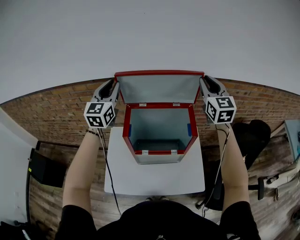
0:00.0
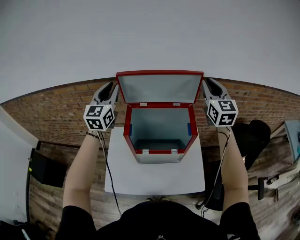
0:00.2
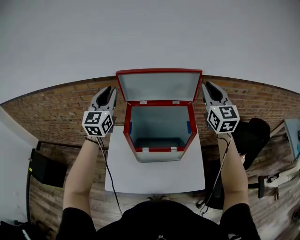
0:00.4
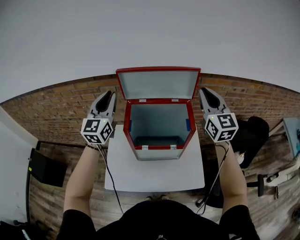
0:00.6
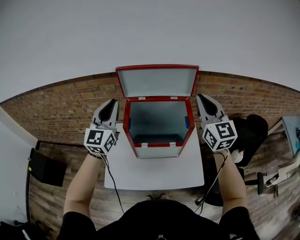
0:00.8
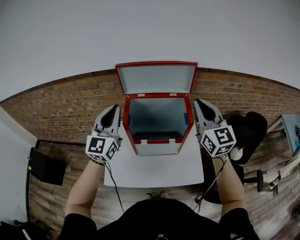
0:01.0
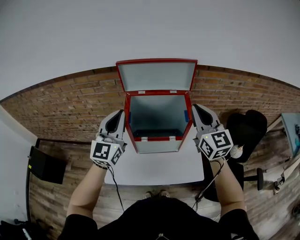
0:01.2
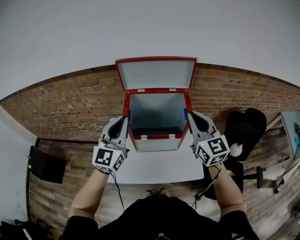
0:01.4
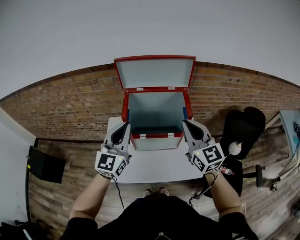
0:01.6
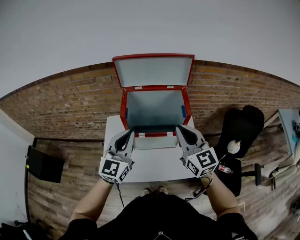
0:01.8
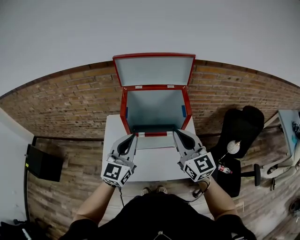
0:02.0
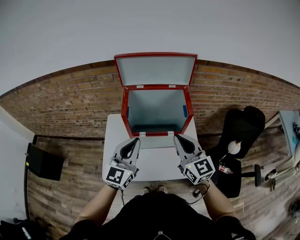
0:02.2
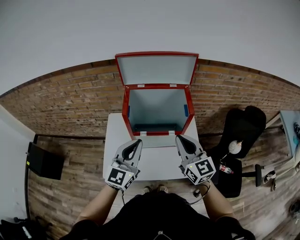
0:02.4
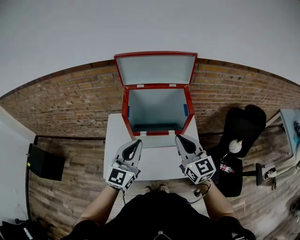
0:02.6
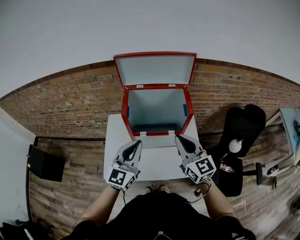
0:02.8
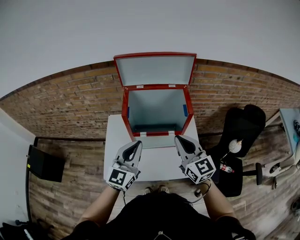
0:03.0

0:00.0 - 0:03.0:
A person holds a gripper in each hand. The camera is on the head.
0:00.0 - 0:01.6: The left gripper is displaced backward by about 25 cm; the right gripper travels backward and downward by approximately 25 cm.
0:01.6 - 0:03.0: The right gripper is displaced downward by about 5 cm. The left gripper travels downward and backward by some 10 cm.

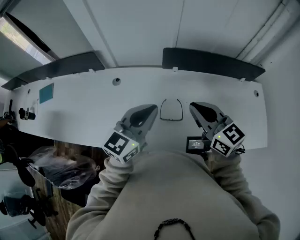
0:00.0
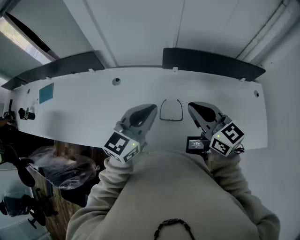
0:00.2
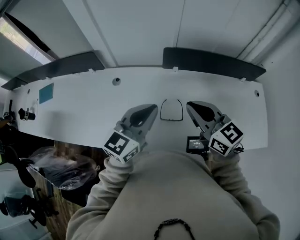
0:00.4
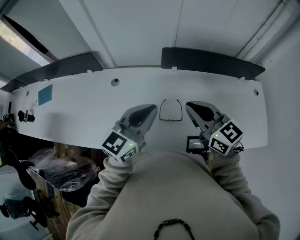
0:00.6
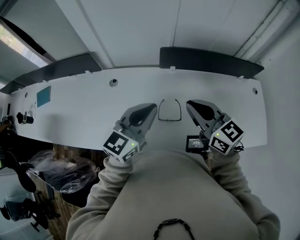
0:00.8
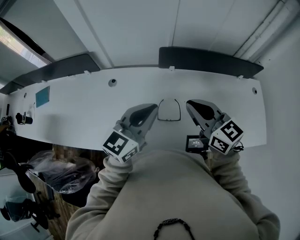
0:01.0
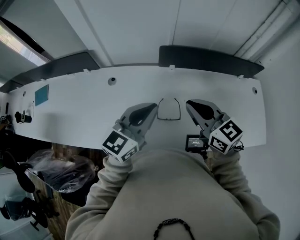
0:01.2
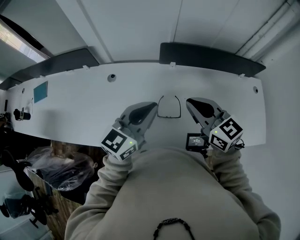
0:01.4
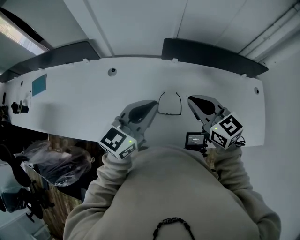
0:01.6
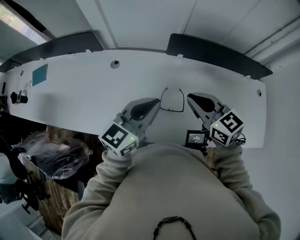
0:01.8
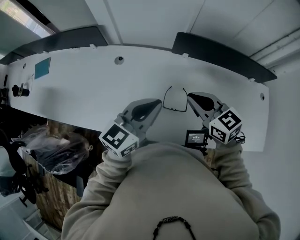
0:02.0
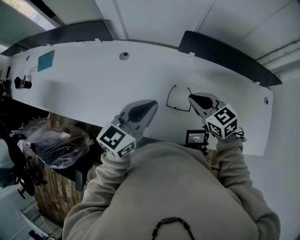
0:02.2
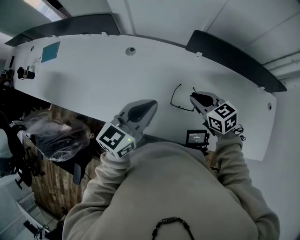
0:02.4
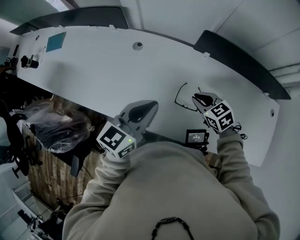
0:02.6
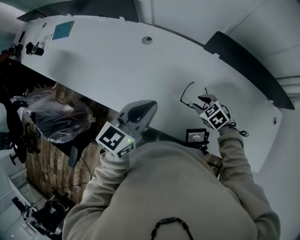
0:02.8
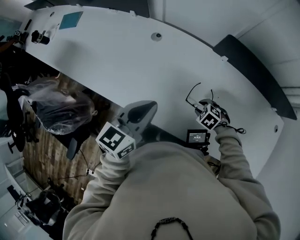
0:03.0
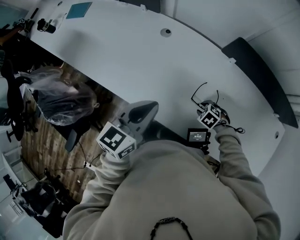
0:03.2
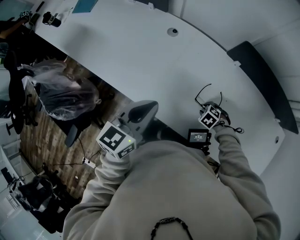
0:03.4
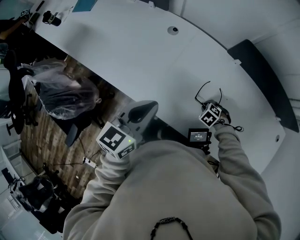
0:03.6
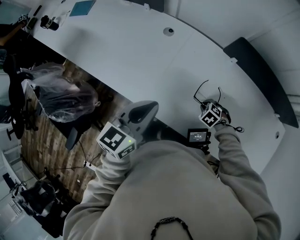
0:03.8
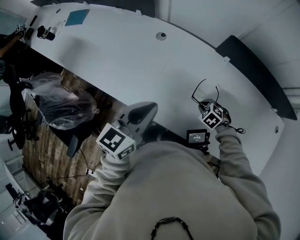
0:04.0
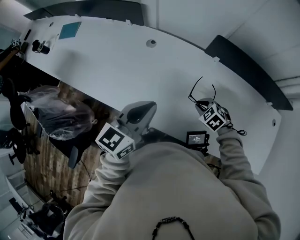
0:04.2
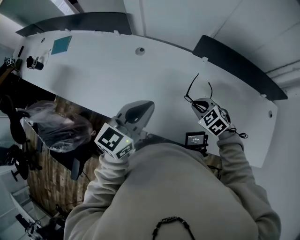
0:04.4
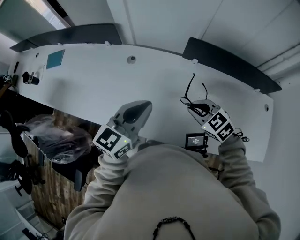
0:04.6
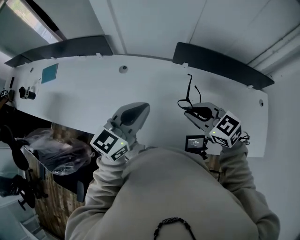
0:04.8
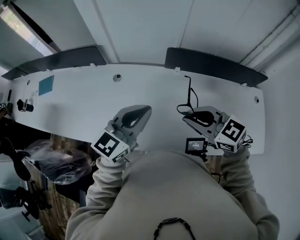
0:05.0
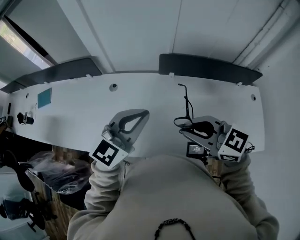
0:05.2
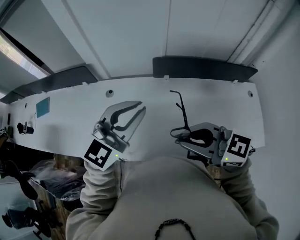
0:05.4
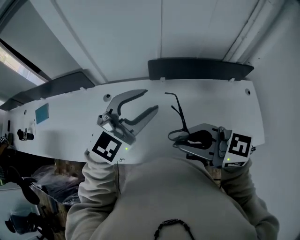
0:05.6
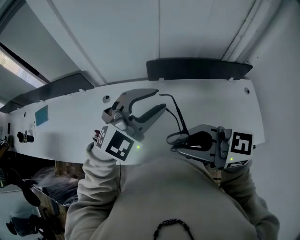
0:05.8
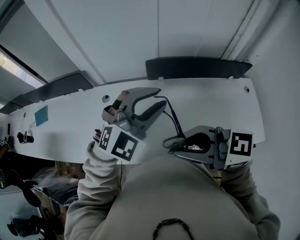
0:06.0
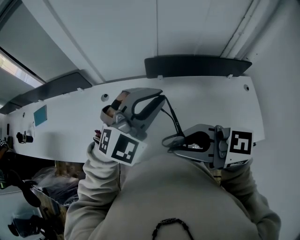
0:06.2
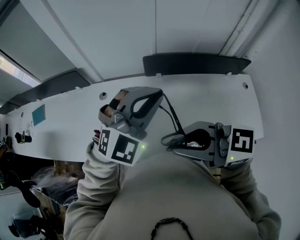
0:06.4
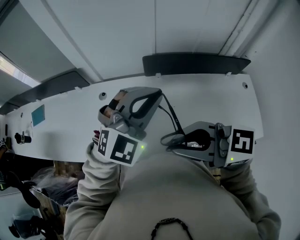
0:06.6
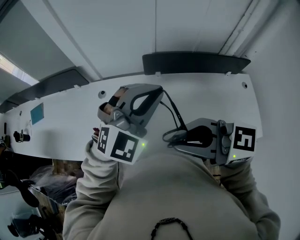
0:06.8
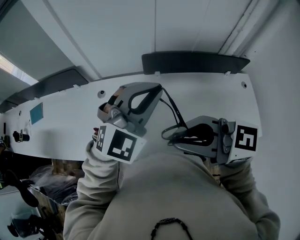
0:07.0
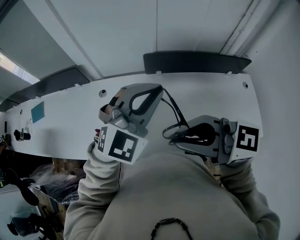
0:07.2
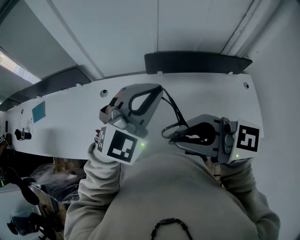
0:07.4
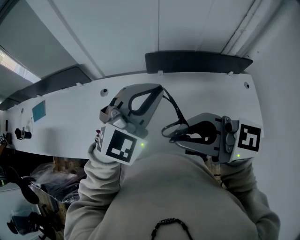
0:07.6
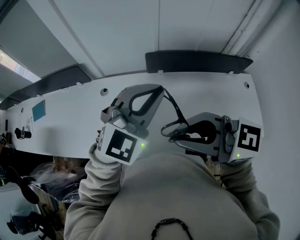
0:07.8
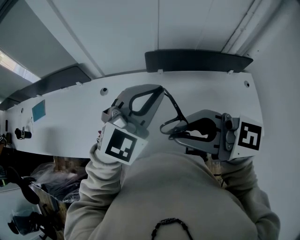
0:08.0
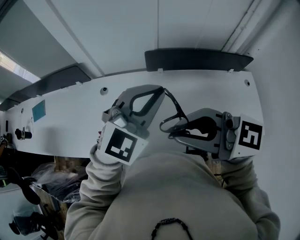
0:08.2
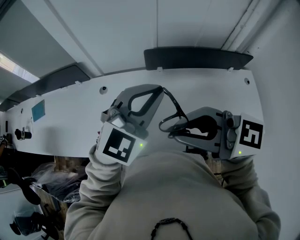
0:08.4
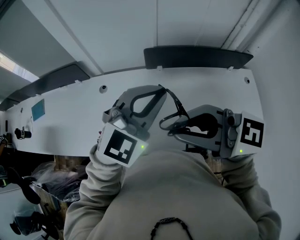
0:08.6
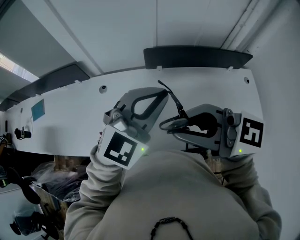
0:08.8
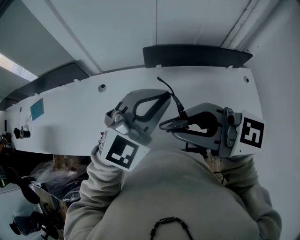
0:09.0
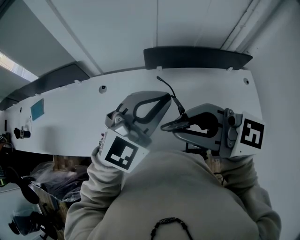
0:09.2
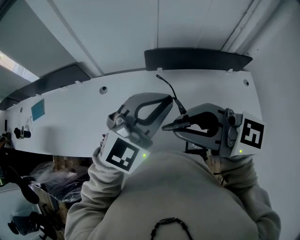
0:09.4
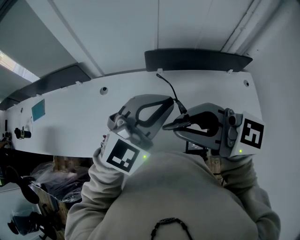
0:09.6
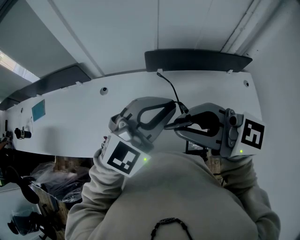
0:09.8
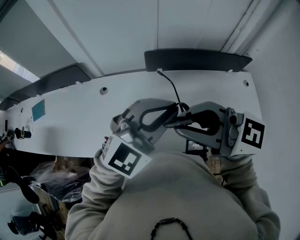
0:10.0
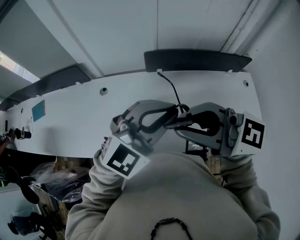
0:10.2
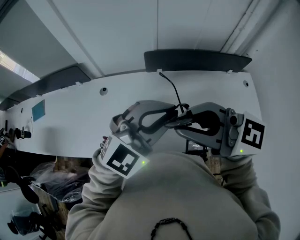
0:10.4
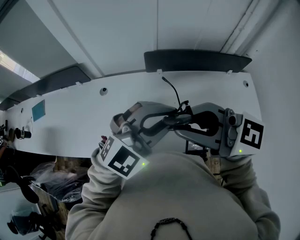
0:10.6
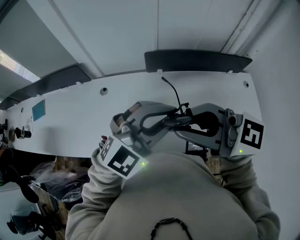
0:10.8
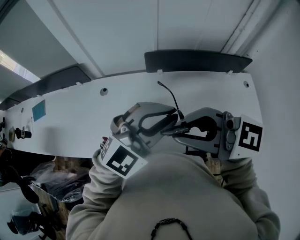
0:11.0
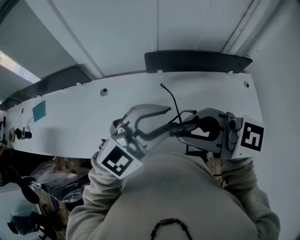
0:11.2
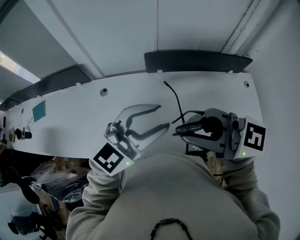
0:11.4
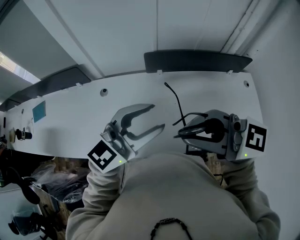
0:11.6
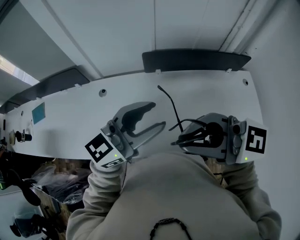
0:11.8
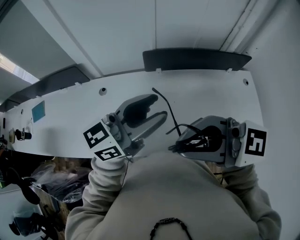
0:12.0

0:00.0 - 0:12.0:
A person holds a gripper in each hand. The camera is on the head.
0:00.0 - 0:01.6: The right gripper changes place by roughly 5 cm.
0:01.6 - 0:03.0: The left gripper moves approximately 15 cm, and swivels about 30 degrees; the right gripper is displaced downward by about 30 cm, tips its fingers downward by about 60 degrees, and opens up.
0:03.0 - 0:04.4: The right gripper travels upward by about 15 cm, and rotates approximately 20 degrees.
0:04.4 - 0:06.0: The right gripper shifts some 30 cm upward, and tips its fingers upward by some 50 degrees; the left gripper ends up some 25 cm from where it was, rolls clockwise, seen from behind, by approximately 60 degrees, and opens up.
0:06.0 - 0:07.6: The left gripper closes.
0:07.6 - 0:09.0: The grippers make only small movements.
0:09.0 - 0:10.4: The grippers move only a little.
0:10.4 - 0:12.0: The left gripper rotates around the line of its fingers by some 50 degrees, counterclockwise from behind, and opens its fingers.

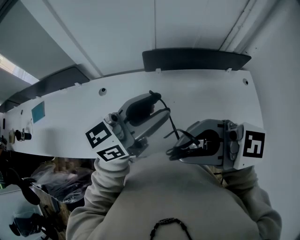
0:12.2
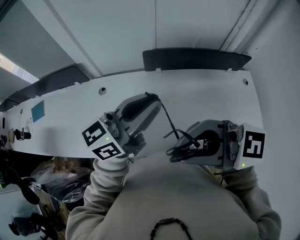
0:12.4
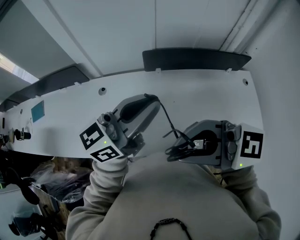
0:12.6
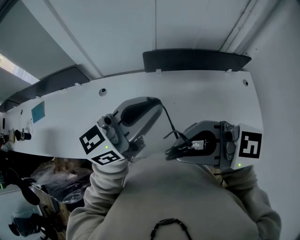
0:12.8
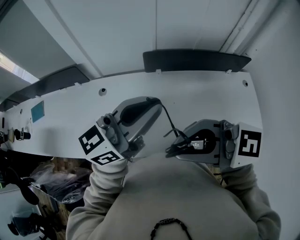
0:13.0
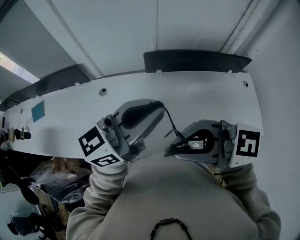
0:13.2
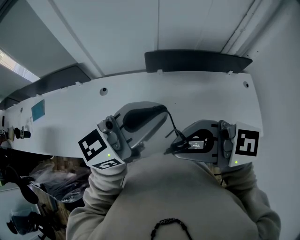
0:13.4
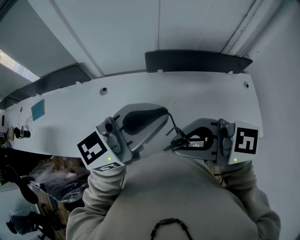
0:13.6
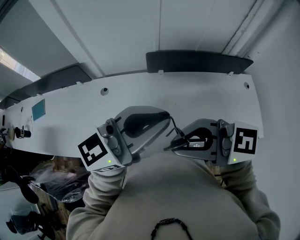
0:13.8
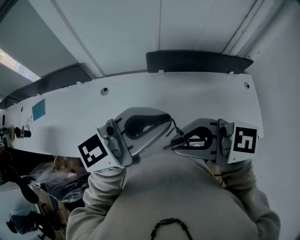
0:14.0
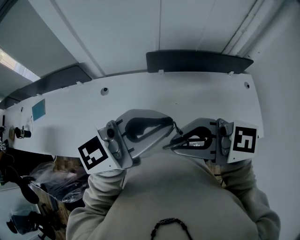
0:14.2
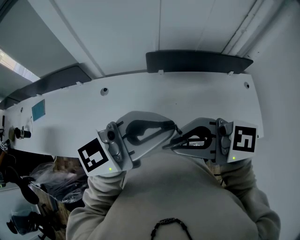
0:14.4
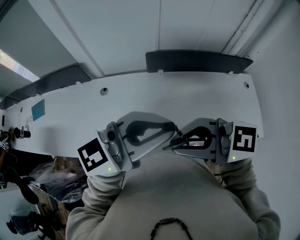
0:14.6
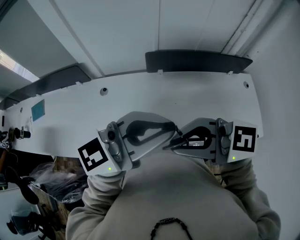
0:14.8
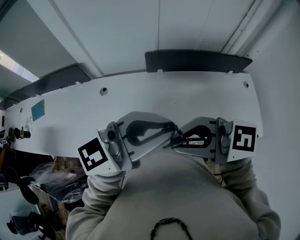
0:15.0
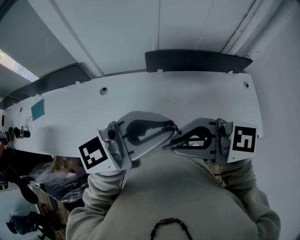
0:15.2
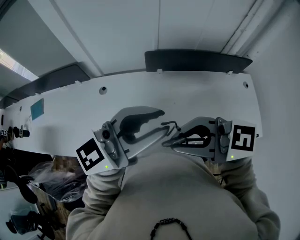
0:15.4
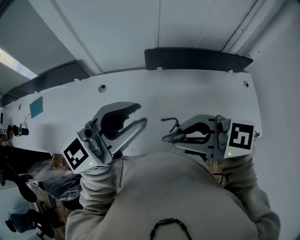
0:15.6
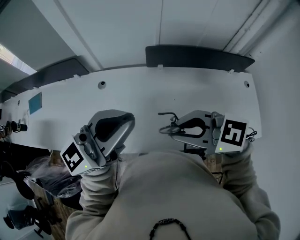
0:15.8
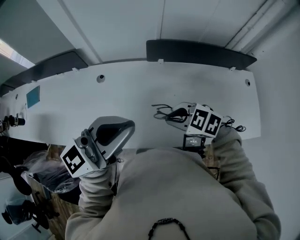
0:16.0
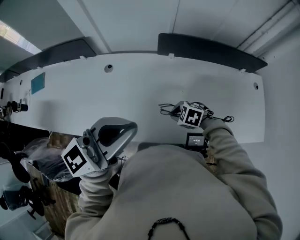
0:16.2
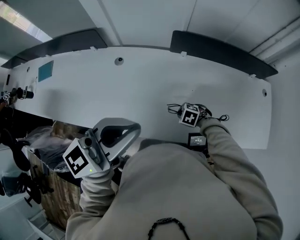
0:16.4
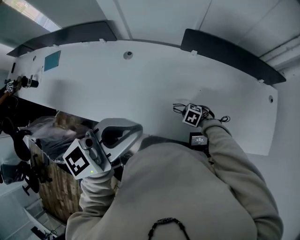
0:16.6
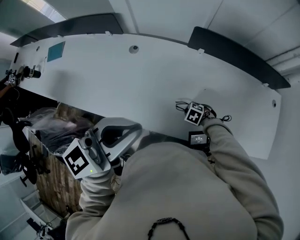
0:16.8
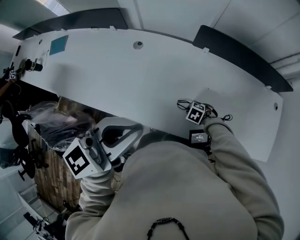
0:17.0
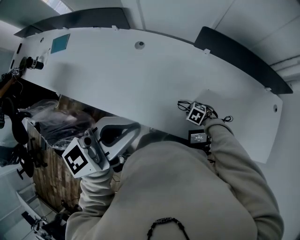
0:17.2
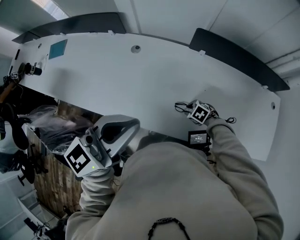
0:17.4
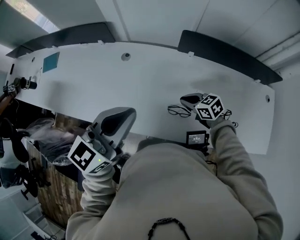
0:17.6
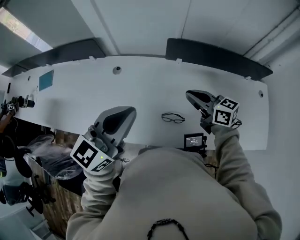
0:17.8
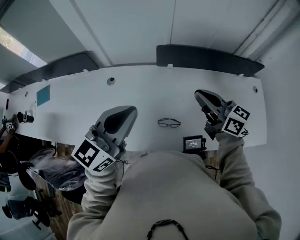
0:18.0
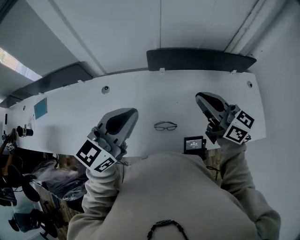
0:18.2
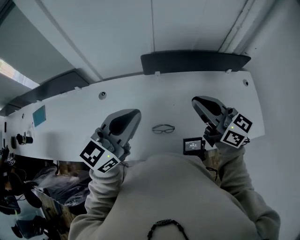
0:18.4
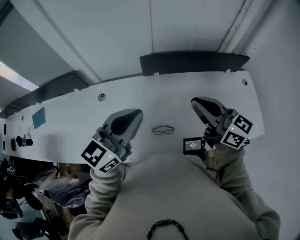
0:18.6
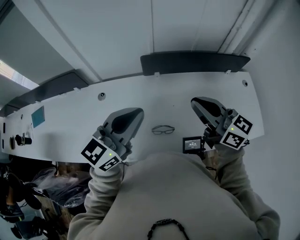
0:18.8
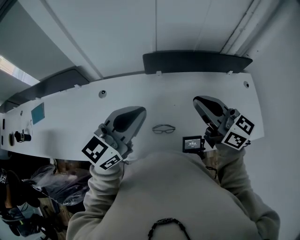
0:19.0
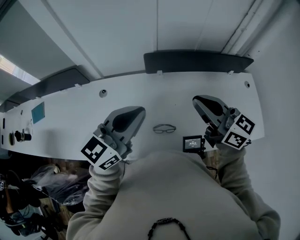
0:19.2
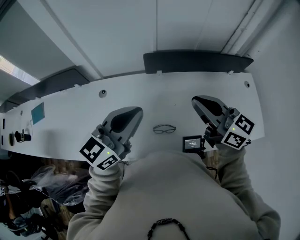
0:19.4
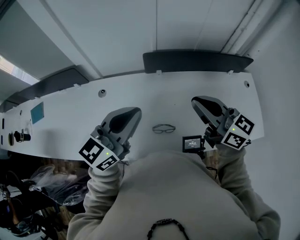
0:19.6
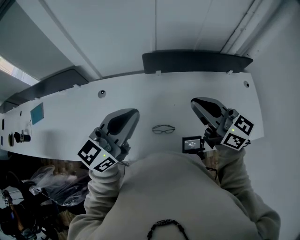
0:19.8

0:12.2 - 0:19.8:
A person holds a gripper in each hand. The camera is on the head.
0:12.2 - 0:13.8: The left gripper changes place by some 5 cm, and closes up.
0:13.8 - 0:15.2: The grippers make only small movements.
0:15.2 - 0:16.8: The left gripper changes place by about 15 cm, and turns by about 30 degrees. Meanwhile the right gripper heads downward, covering some 50 cm, and points its fingers some 70 degrees further downward.
0:16.8 - 0:18.2: The left gripper ends up about 10 cm from where it was. Meanwhile the right gripper travels upward by roughly 40 cm, and tilts its fingers roughly 80 degrees upward.
0:18.2 - 0:19.8: There are only small adjustments of the grippers.

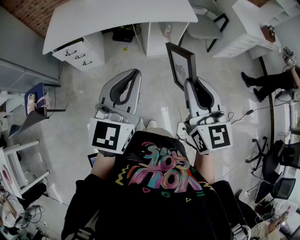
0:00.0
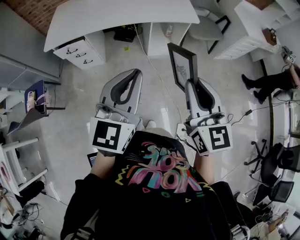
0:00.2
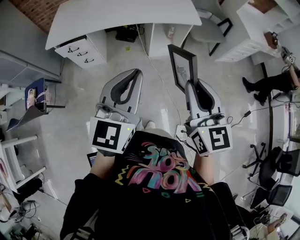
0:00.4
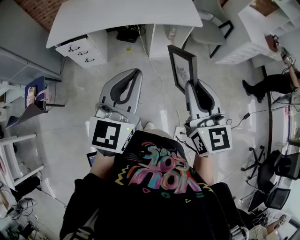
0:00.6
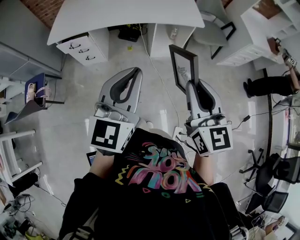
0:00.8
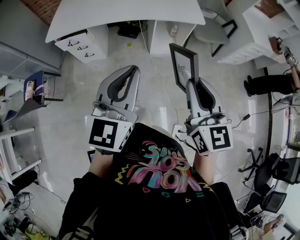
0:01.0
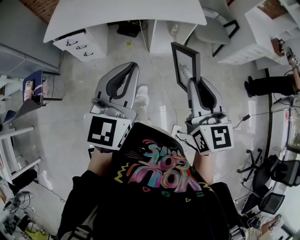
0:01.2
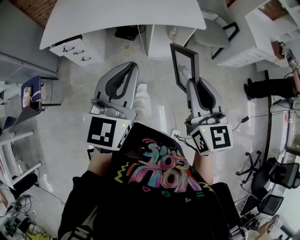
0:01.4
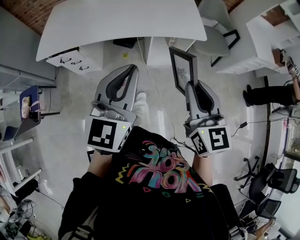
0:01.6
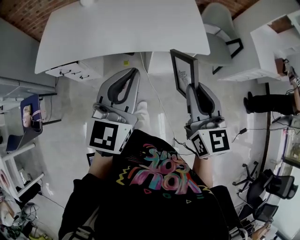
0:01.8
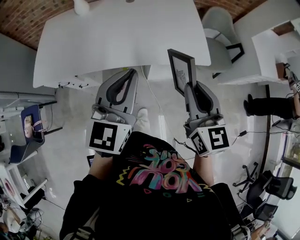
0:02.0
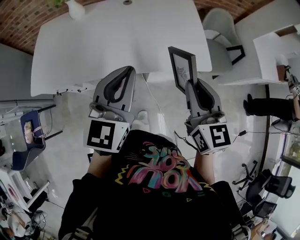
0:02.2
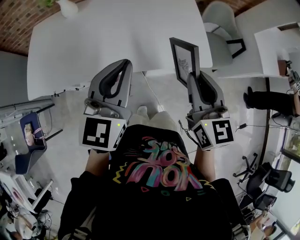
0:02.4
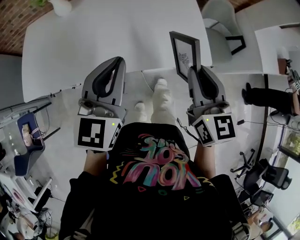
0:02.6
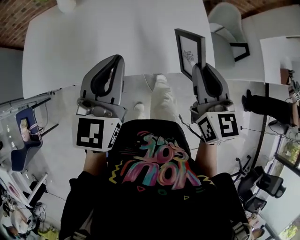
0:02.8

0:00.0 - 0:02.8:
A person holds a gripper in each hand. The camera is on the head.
0:00.0 - 0:01.4: The grippers both shift forward by roughly 10 cm.
0:01.4 - 0:02.8: Both grippers are carried forward, roughly 50 cm.
